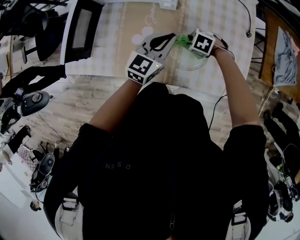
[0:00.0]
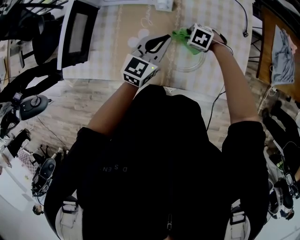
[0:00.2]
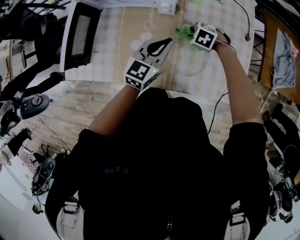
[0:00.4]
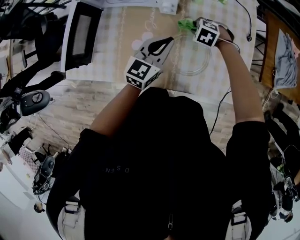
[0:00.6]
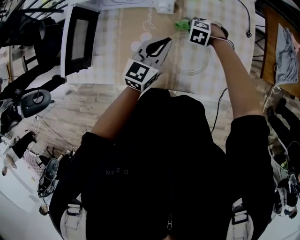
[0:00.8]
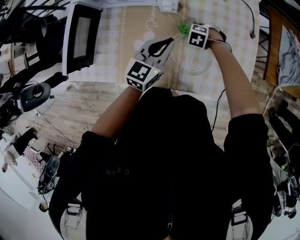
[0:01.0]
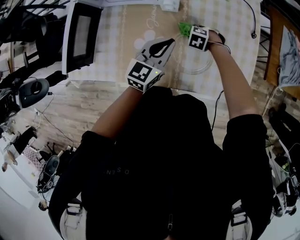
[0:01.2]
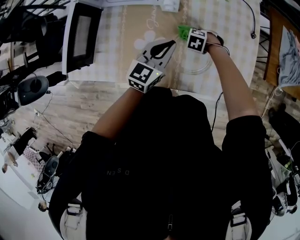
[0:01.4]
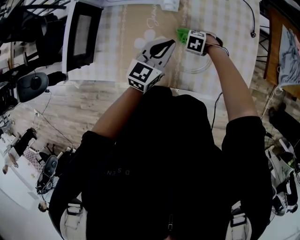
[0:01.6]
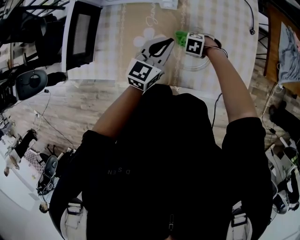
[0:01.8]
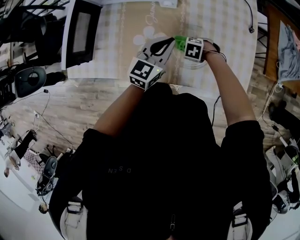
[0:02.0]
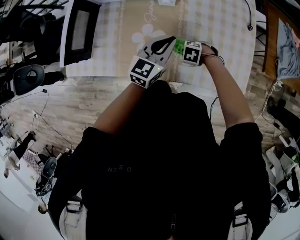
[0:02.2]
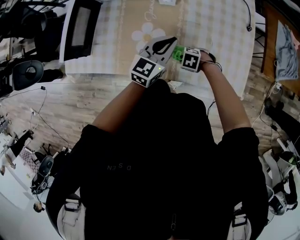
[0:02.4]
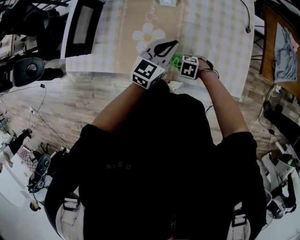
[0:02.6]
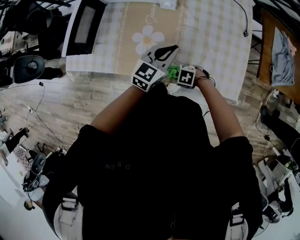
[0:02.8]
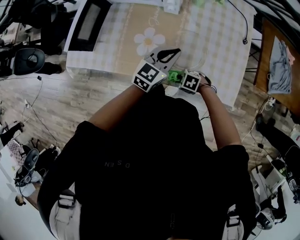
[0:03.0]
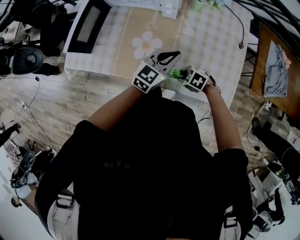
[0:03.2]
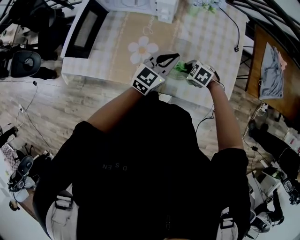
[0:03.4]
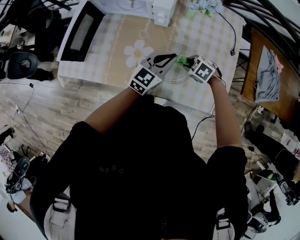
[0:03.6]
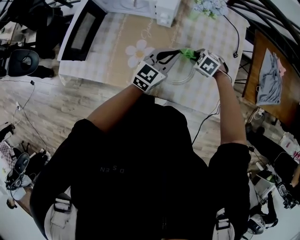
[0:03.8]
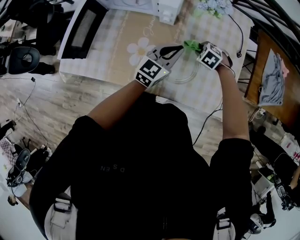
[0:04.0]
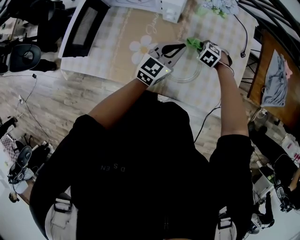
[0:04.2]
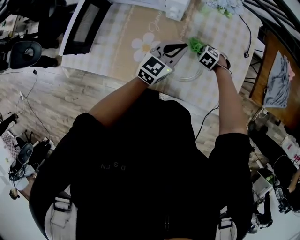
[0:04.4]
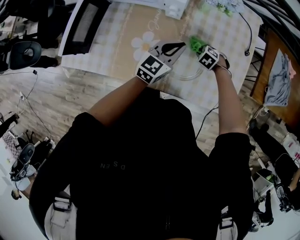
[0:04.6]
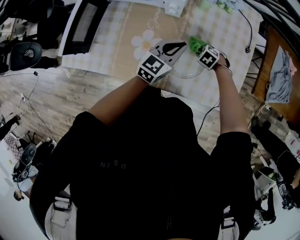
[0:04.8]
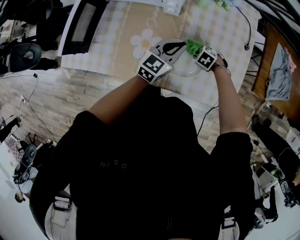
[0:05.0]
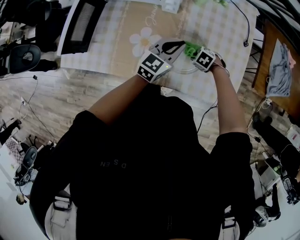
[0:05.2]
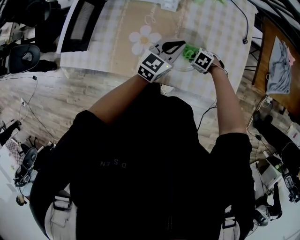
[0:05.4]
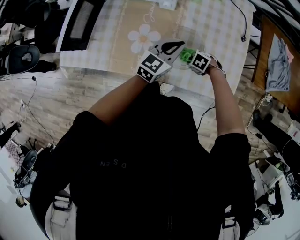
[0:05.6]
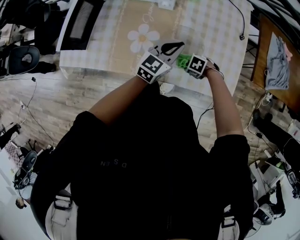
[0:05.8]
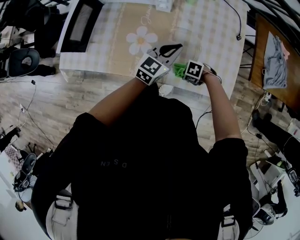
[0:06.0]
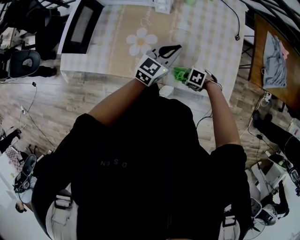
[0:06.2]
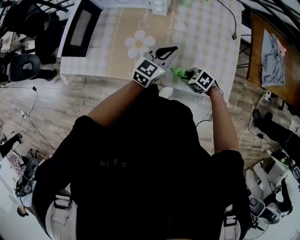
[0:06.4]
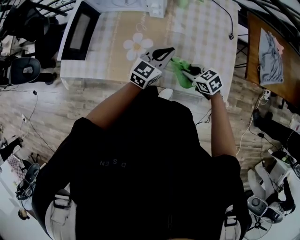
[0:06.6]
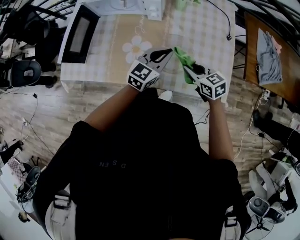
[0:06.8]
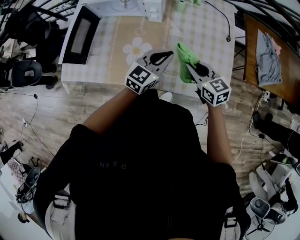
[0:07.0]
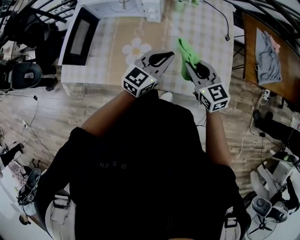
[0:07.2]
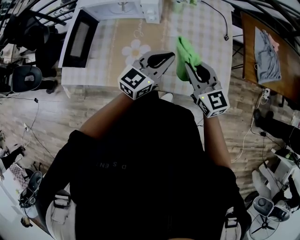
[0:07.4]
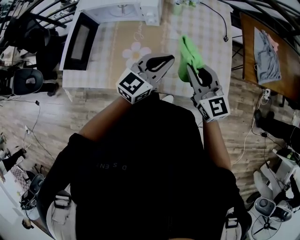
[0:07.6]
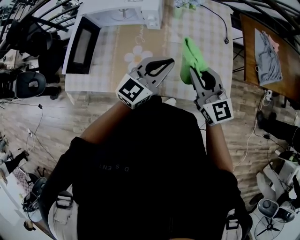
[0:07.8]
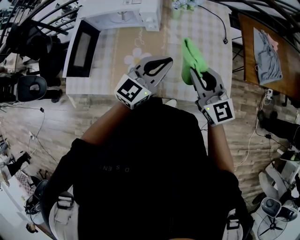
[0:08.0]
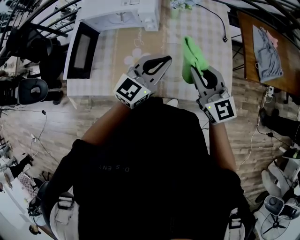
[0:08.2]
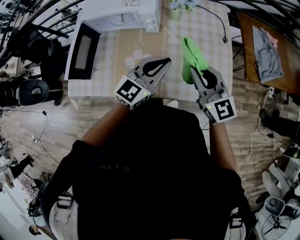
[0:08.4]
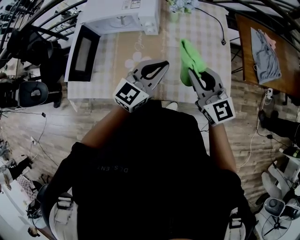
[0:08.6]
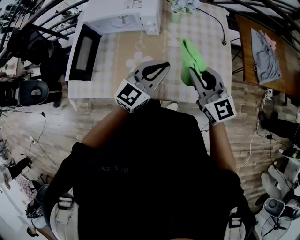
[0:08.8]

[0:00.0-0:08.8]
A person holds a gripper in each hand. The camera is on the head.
0:00.0 to 0:01.4: The right gripper is displaced downward by some 5 cm.
0:01.4 to 0:03.0: The left gripper changes place by about 10 cm; the right gripper ends up about 25 cm from where it was, and rotates roughly 20 degrees.
0:03.0 to 0:04.4: The right gripper moves roughly 5 cm upward and comes back, and changes its angle by roughly 30 degrees. The left gripper changes place by roughly 10 cm.
0:04.4 to 0:05.8: The left gripper ends up approximately 5 cm from where it was. Meanwhile the right gripper shifts by some 20 cm, and swivels about 30 degrees.
0:05.8 to 0:07.4: The left gripper goes approximately 10 cm upward. Meanwhile the right gripper is displaced upward by some 30 cm, and tips its fingers upward by some 50 degrees.
0:07.4 to 0:08.8: The right gripper travels upward by some 5 cm.

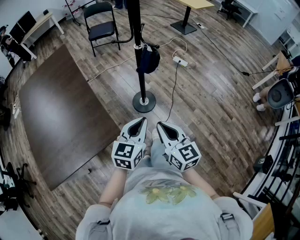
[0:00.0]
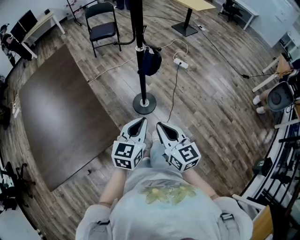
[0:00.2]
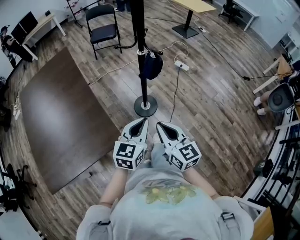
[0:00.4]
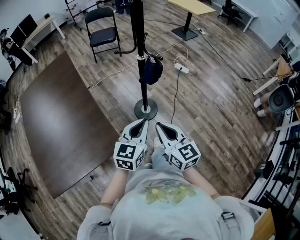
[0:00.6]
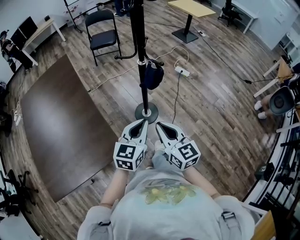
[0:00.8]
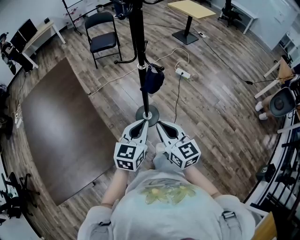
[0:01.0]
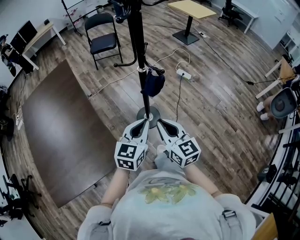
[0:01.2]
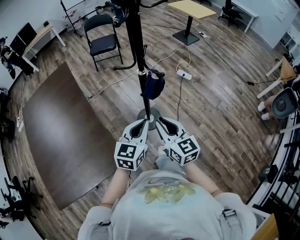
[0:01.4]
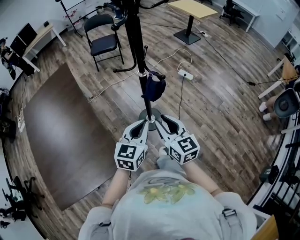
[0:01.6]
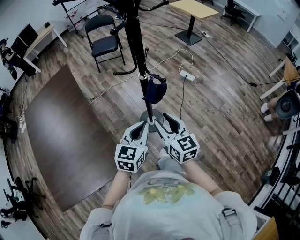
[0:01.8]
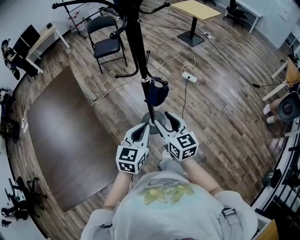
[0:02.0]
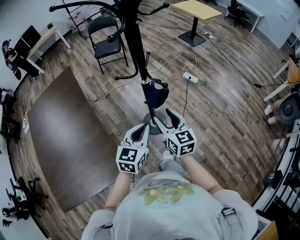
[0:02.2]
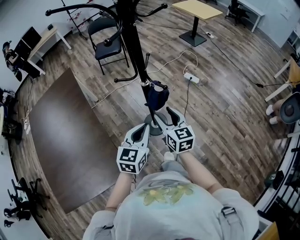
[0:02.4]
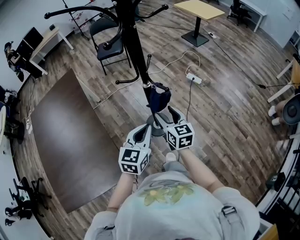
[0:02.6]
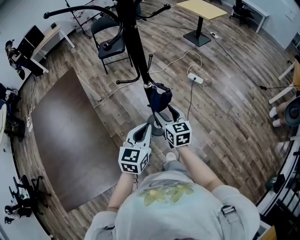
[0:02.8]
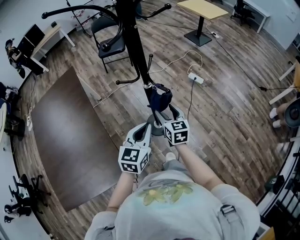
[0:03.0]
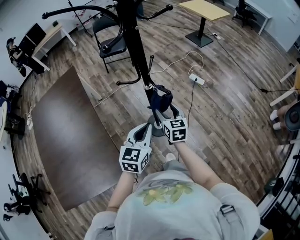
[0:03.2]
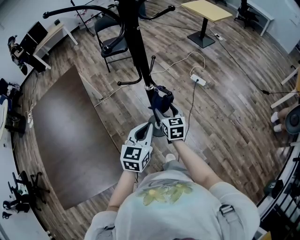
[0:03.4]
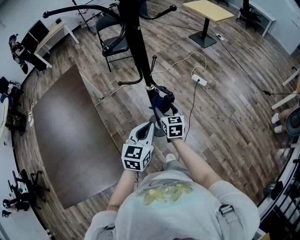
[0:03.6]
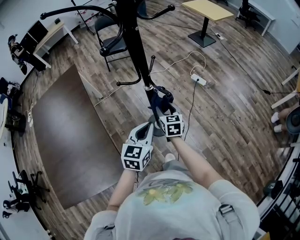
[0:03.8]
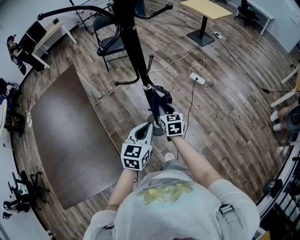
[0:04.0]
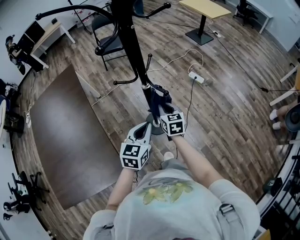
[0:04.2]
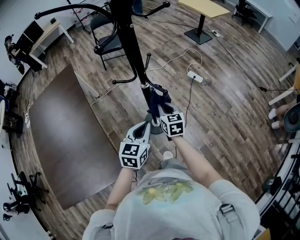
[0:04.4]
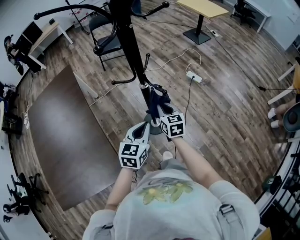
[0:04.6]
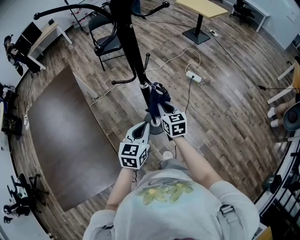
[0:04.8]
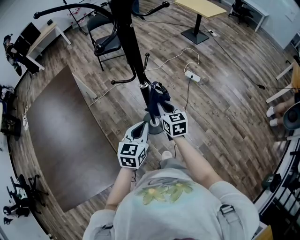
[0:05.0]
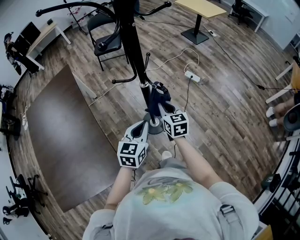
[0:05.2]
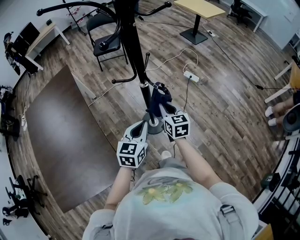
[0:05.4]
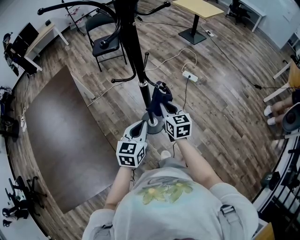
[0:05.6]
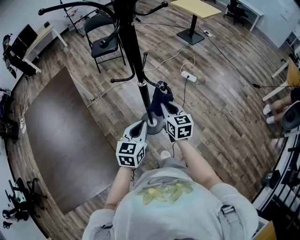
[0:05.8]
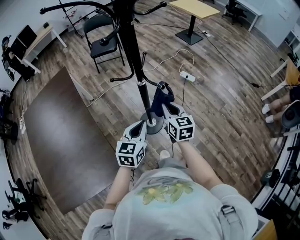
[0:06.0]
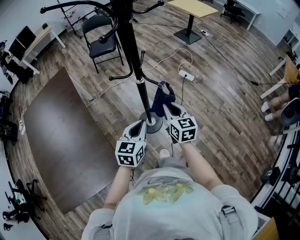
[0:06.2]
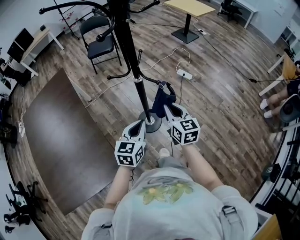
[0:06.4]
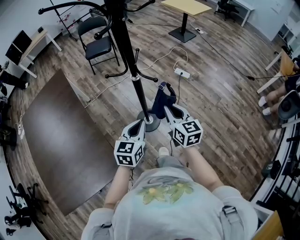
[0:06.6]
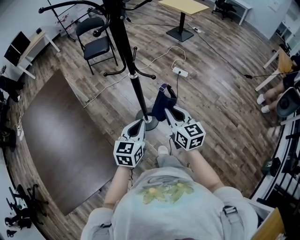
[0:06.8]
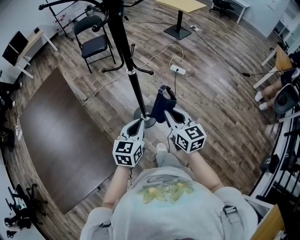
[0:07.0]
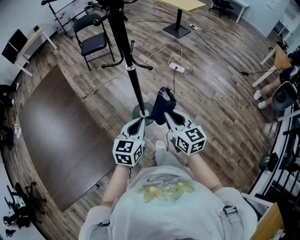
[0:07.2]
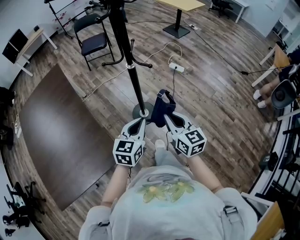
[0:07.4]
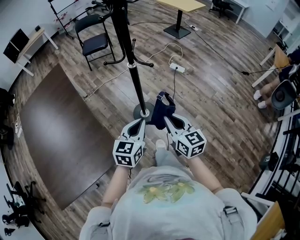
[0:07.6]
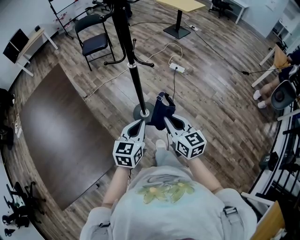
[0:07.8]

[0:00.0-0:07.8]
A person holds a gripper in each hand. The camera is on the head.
0:00.0 to 0:01.6: The two grippers go about 15 cm forward.
0:01.6 to 0:03.2: The right gripper travels forward and downward by about 20 cm, and opens, while the left gripper goes approximately 5 cm forward.
0:03.2 to 0:04.6: The right gripper closes its fingers.
0:04.6 to 0:06.2: The right gripper heads upward and backward, covering about 10 cm.
0:06.2 to 0:07.8: The left gripper shifts about 10 cm backward. Meanwhile the right gripper heads backward, covering about 20 cm.

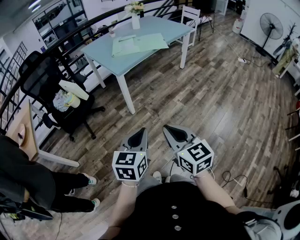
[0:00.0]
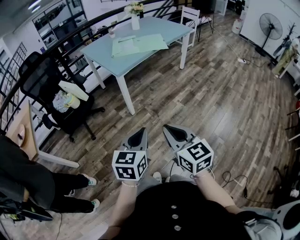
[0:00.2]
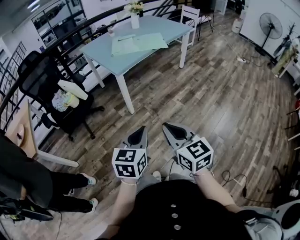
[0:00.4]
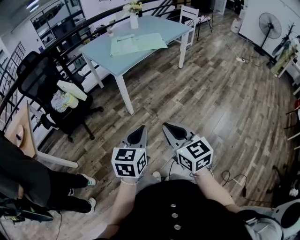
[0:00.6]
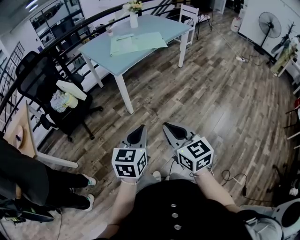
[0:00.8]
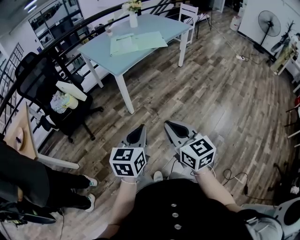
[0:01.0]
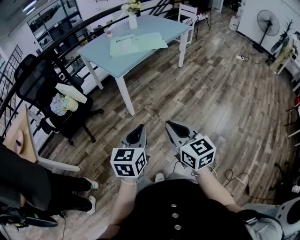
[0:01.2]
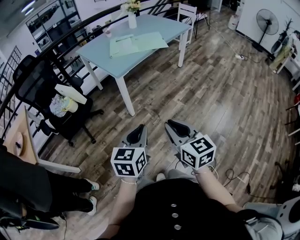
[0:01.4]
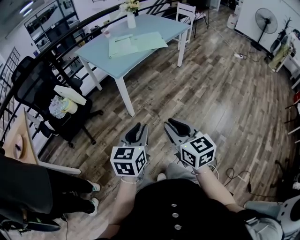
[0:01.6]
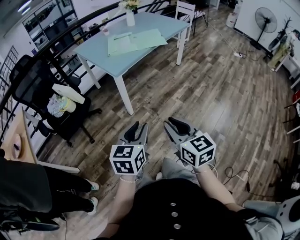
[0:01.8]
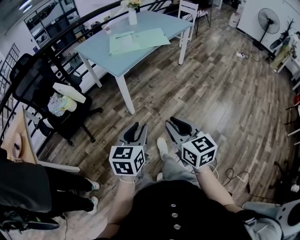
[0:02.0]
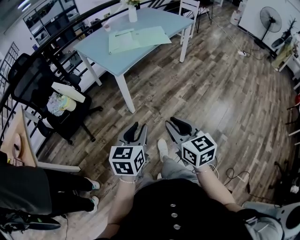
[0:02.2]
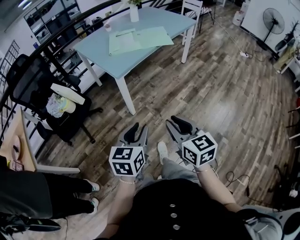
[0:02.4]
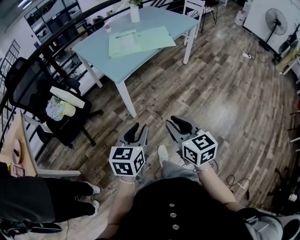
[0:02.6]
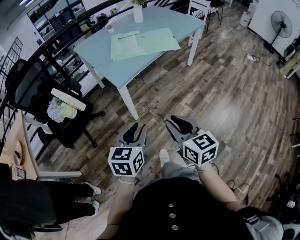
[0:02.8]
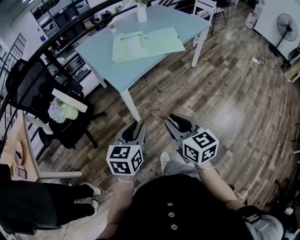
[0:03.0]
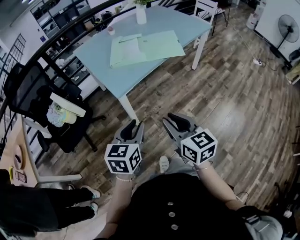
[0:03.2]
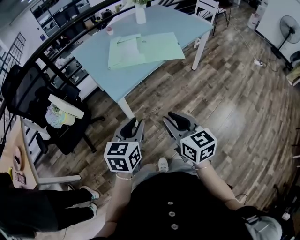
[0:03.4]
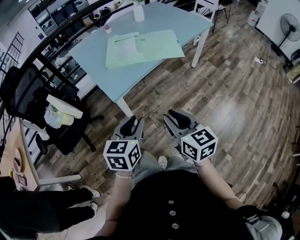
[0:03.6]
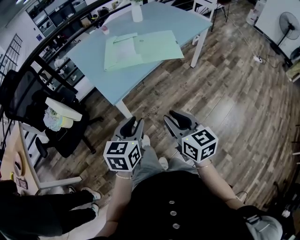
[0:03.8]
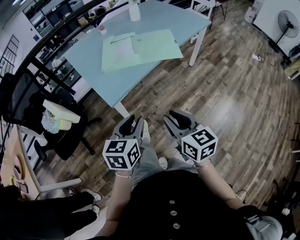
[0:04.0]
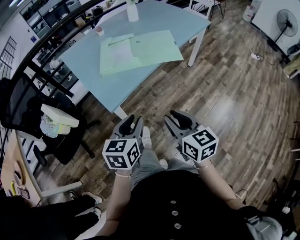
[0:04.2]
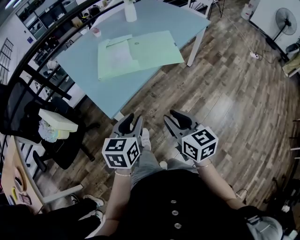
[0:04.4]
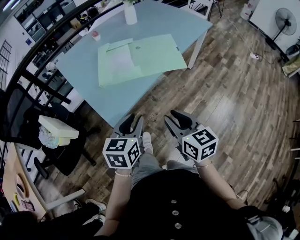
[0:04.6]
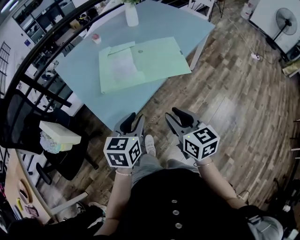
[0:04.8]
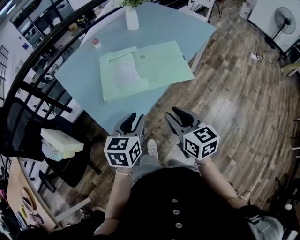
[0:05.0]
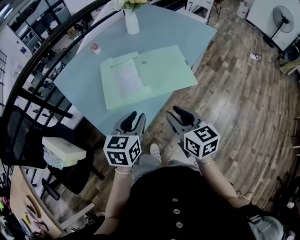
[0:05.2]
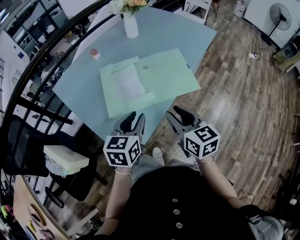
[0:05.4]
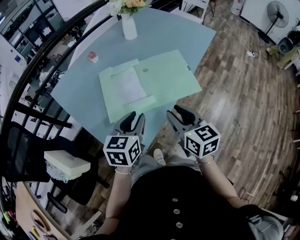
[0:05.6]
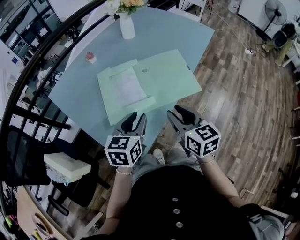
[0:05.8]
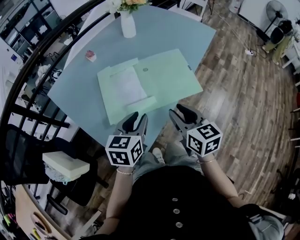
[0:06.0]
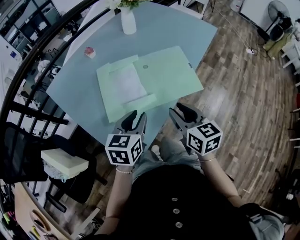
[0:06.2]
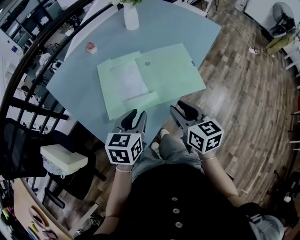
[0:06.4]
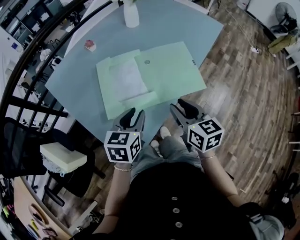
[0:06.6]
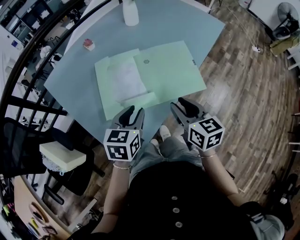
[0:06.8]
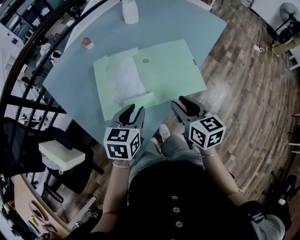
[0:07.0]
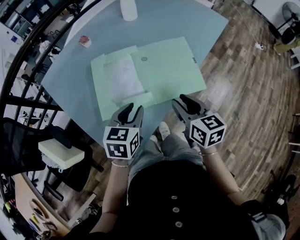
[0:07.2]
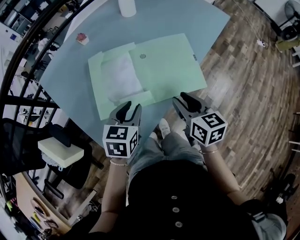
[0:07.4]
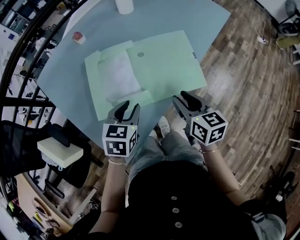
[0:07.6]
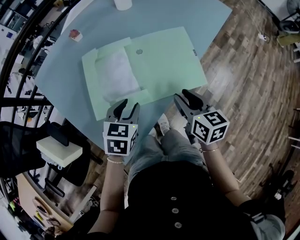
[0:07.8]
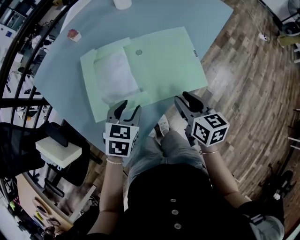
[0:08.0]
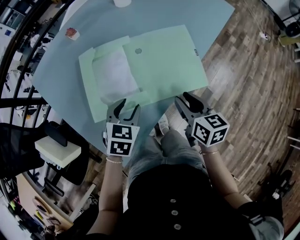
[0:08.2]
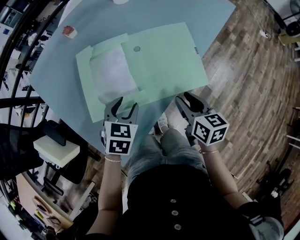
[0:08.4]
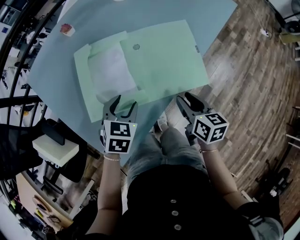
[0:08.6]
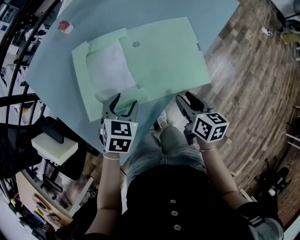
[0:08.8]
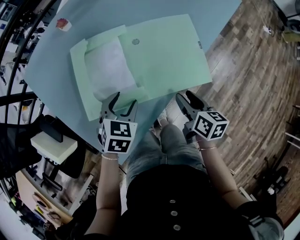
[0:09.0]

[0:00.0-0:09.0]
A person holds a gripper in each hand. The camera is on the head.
0:00.0 to 0:01.6: Both grippers travel together forward, roughly 5 cm.
0:01.6 to 0:03.0: Both grippers move forward, some 25 cm.
0:03.0 to 0:04.4: Both grippers move forward, about 20 cm.
0:04.4 to 0:06.0: The grippers both shift forward by approximately 25 cm.
0:06.0 to 0:07.6: The right gripper goes roughly 10 cm forward, downward and to the right. The left gripper travels downward and forward by some 10 cm.
0:07.6 to 0:09.0: The grippers both shift downward by approximately 10 cm. The right gripper rotates roughly 20 degrees; the left gripper opens up.
